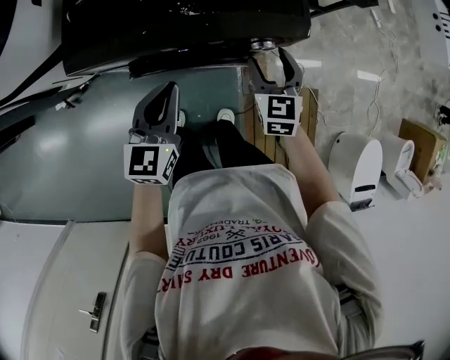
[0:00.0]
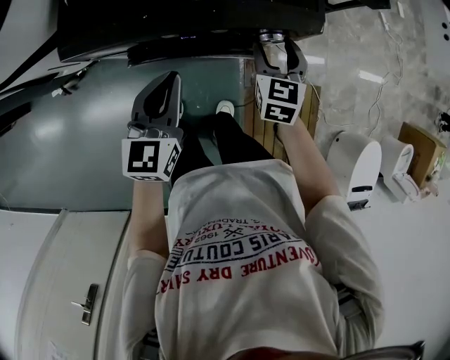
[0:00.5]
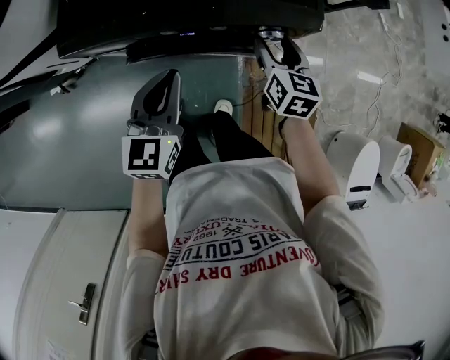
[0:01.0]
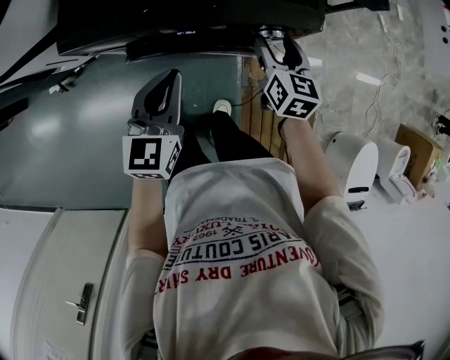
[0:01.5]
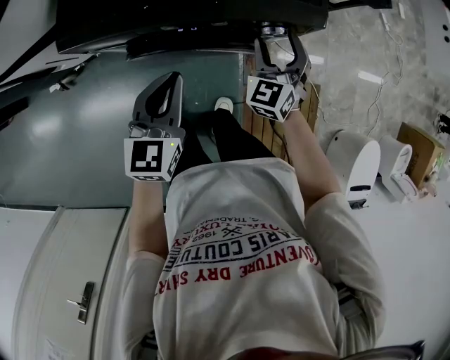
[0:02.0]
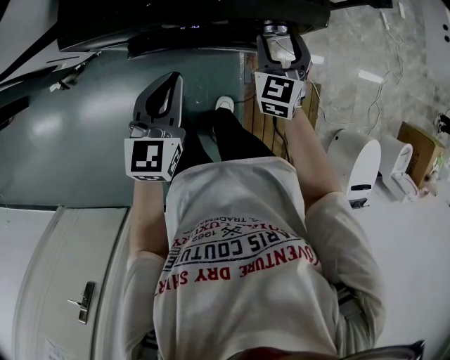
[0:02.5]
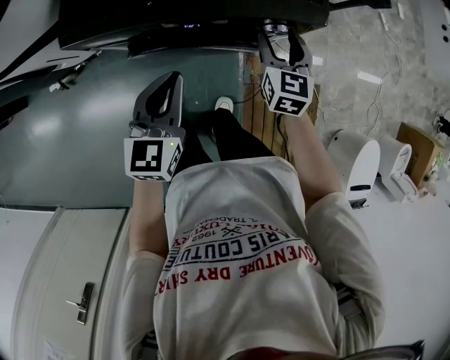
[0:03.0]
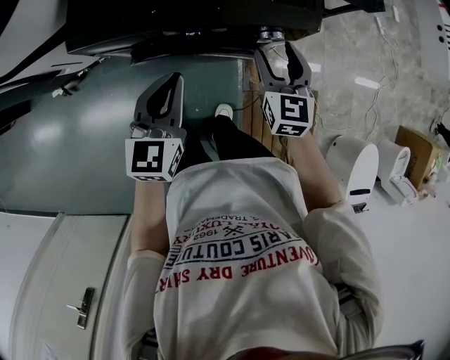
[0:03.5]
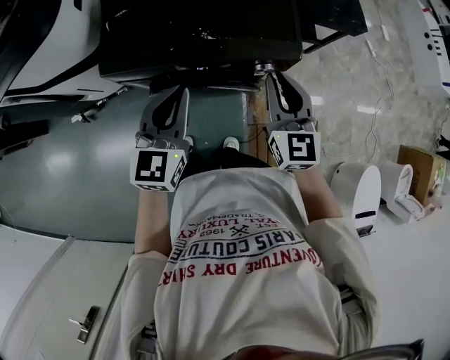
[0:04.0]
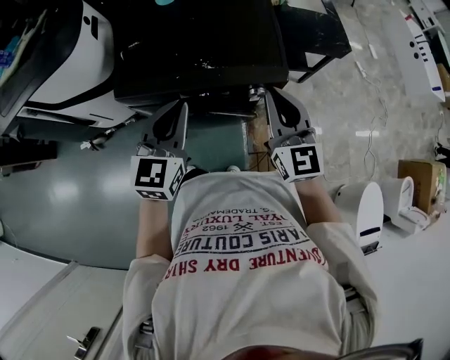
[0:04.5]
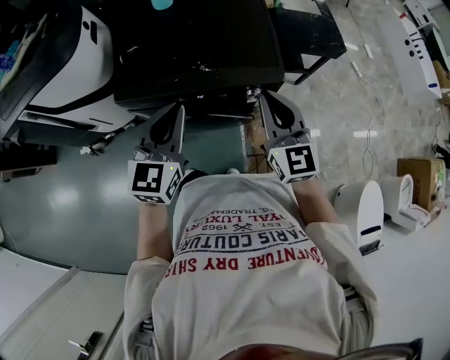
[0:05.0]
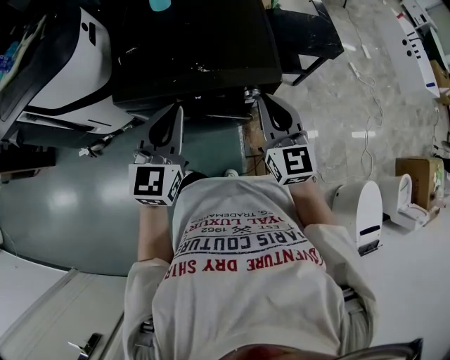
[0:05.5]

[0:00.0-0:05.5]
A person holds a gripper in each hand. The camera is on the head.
0:00.0 to 0:02.0: The right gripper rotates approximately 20 degrees.
0:02.0 to 0:03.5: The right gripper changes place by some 5 cm, and swivels approximately 30 degrees.
0:03.5 to 0:05.5: Both grippers move upward, some 20 cm. The right gripper closes up.

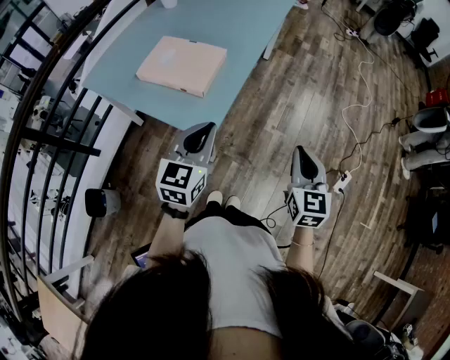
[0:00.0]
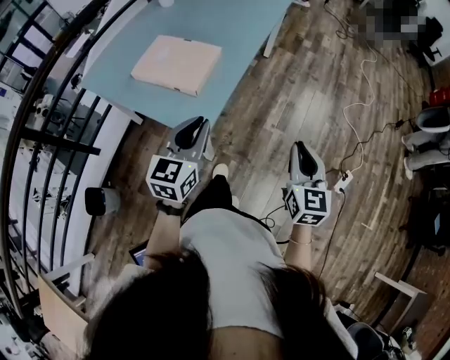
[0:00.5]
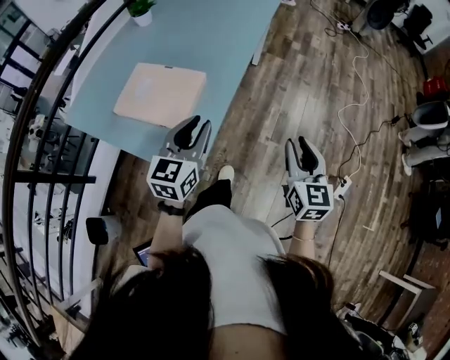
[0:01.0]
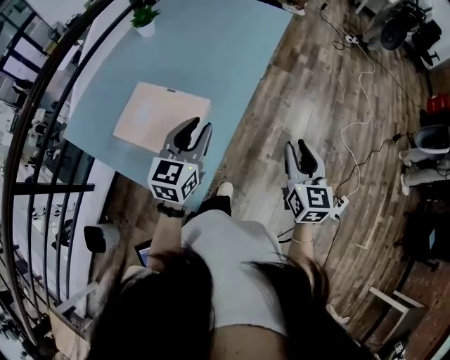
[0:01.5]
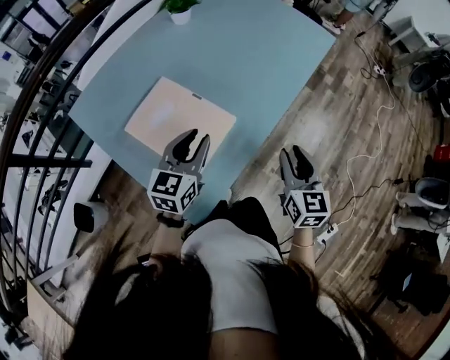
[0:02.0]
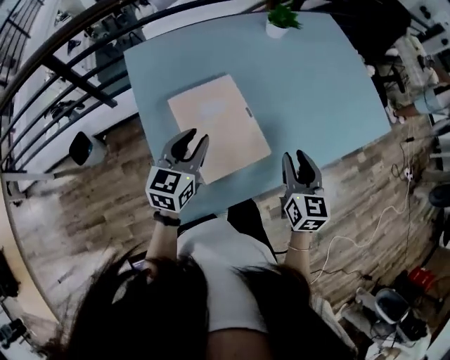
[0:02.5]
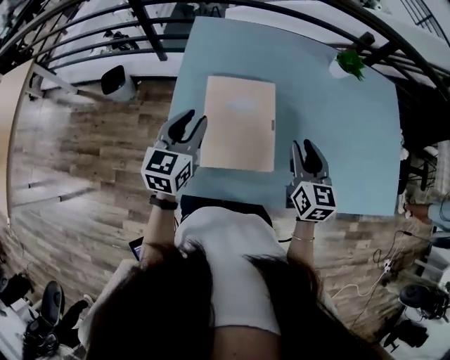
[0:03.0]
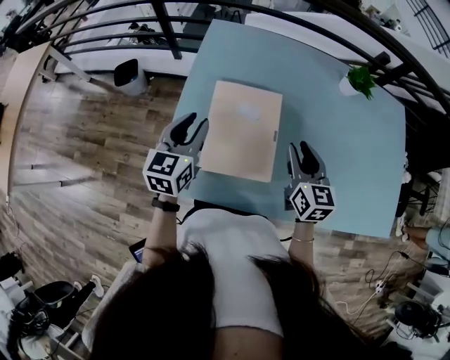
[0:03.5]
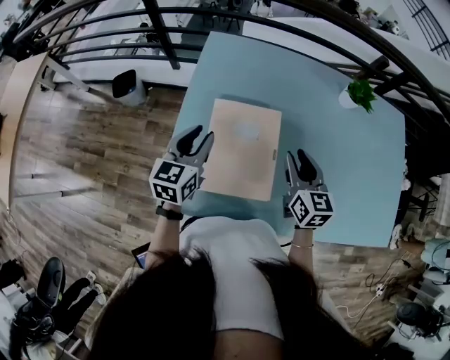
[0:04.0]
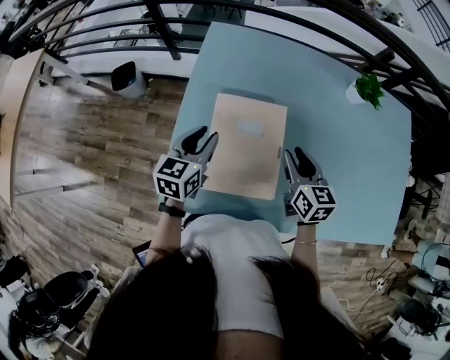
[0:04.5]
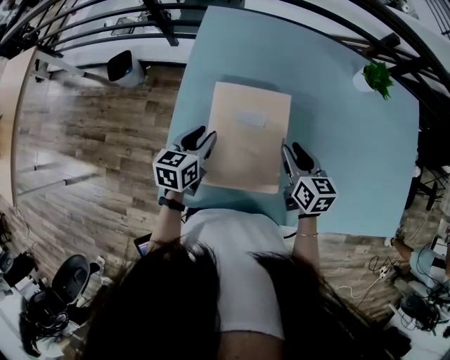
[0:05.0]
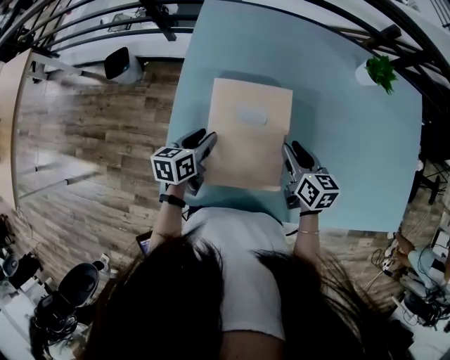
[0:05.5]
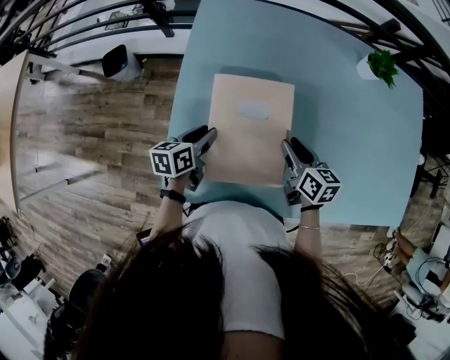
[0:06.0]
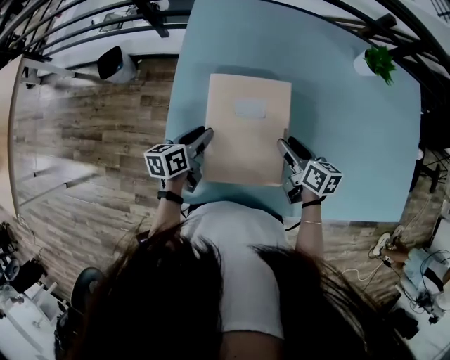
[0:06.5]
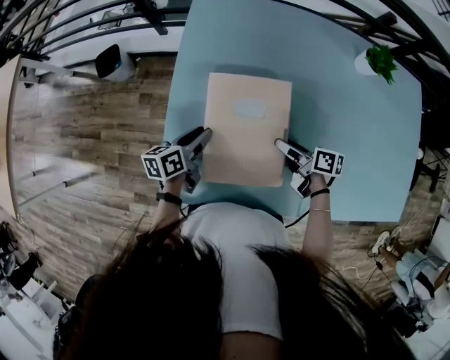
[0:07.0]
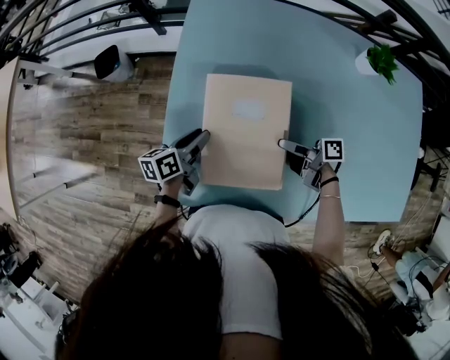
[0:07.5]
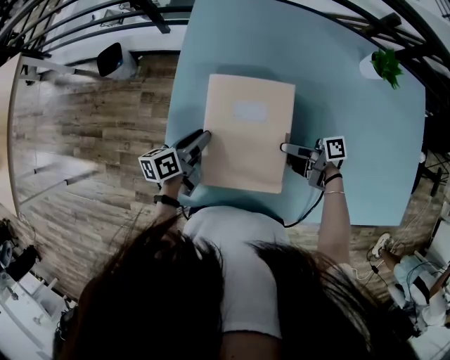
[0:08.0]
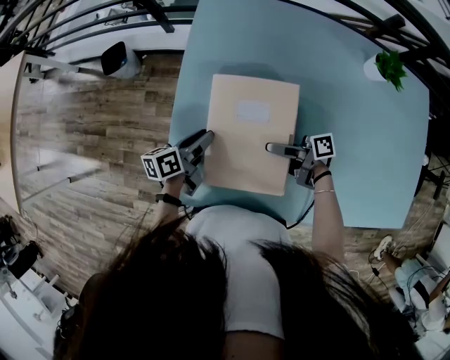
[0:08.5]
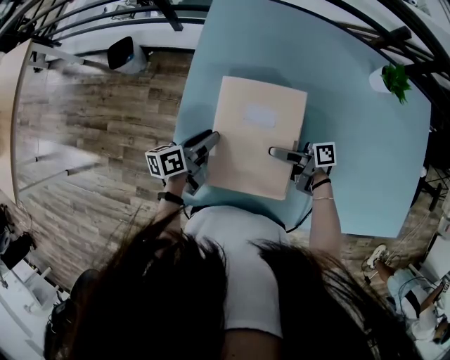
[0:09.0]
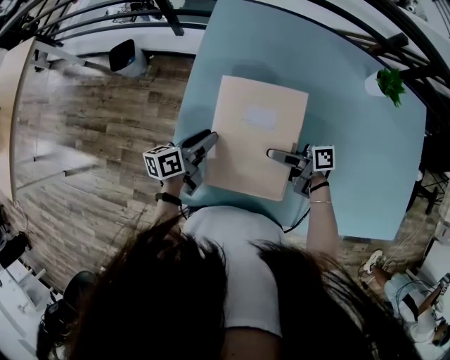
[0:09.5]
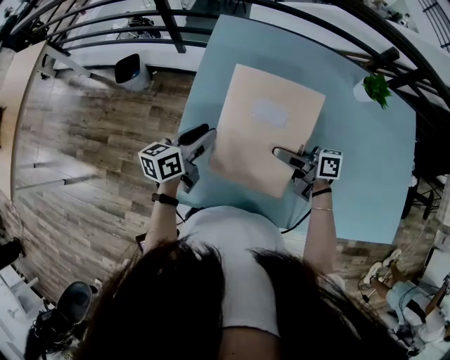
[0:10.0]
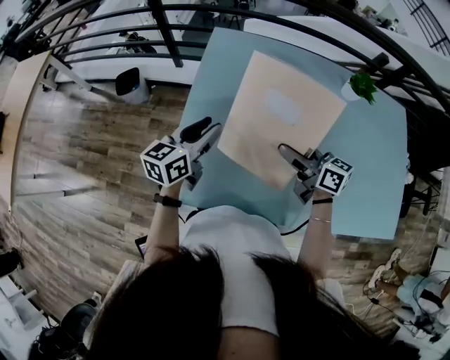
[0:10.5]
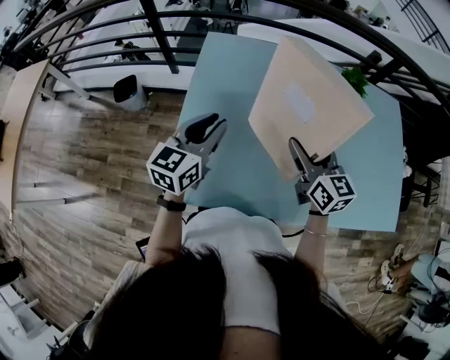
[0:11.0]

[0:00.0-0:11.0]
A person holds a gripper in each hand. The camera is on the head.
0:00.0 to 0:02.0: Both grippers travel together forward, some 35 cm. The right gripper opens its fingers.
0:02.0 to 0:03.5: The left gripper ends up roughly 15 cm from where it was, and swivels roughly 70 degrees, while the right gripper changes place by about 30 cm, and turns by roughly 60 degrees.
0:03.5 to 0:05.5: The two grippers go roughly 15 cm downward. The left gripper rotates about 40 degrees. The right gripper turns by some 20 degrees.
0:05.5 to 0:07.5: The right gripper goes about 5 cm downward, swivels some 60 degrees, and opens up.
0:07.5 to 0:09.0: The right gripper shifts approximately 5 cm to the left.
0:09.0 to 0:11.0: The right gripper heads upward and to the right, covering about 25 cm, and turns by roughly 80 degrees, while the left gripper goes some 25 cm upward, and twists approximately 50 degrees clockwise, seen from behind.

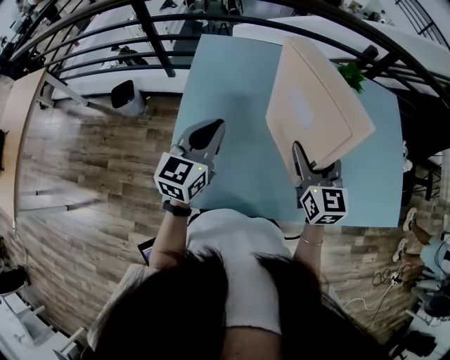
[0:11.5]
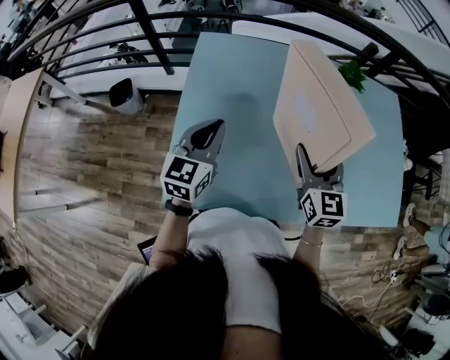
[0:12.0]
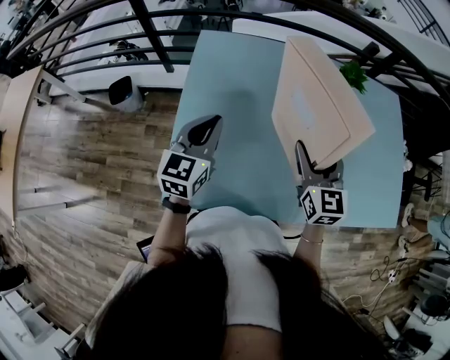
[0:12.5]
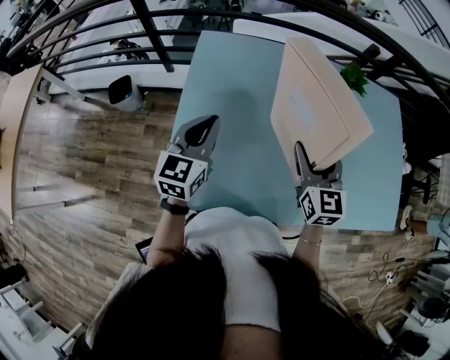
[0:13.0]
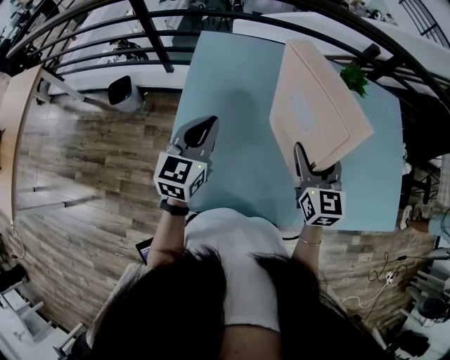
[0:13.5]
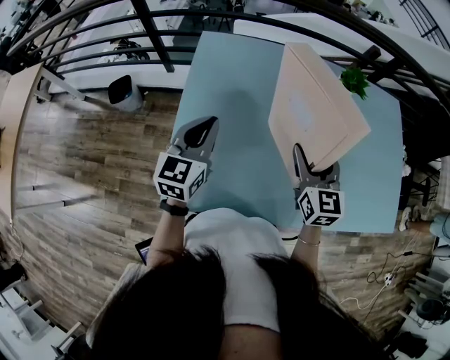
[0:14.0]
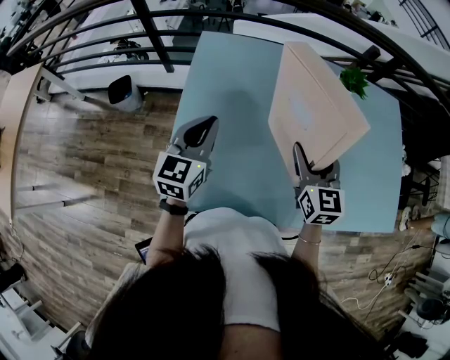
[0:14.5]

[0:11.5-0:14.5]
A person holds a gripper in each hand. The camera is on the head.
0:11.5 to 0:13.0: There are only small adjustments of the grippers.
0:13.0 to 0:14.5: Both grippers stay about where they are.

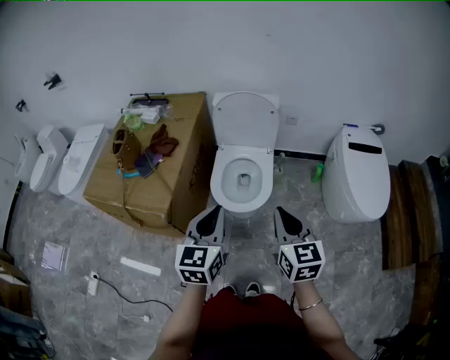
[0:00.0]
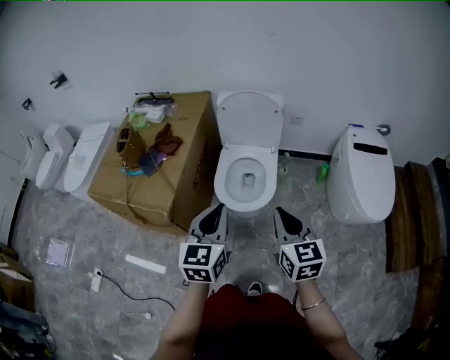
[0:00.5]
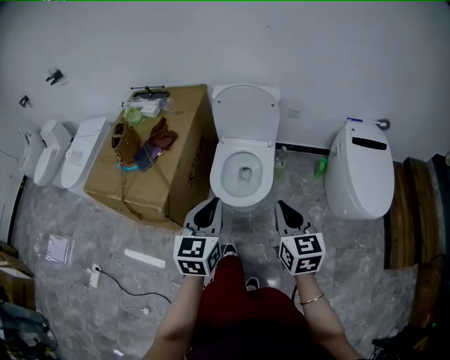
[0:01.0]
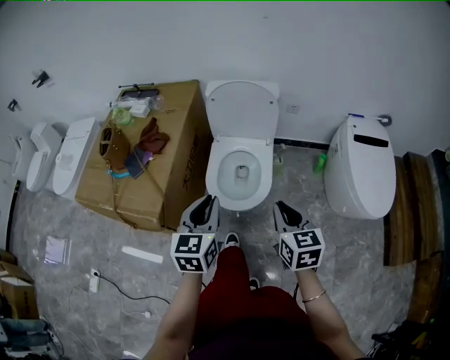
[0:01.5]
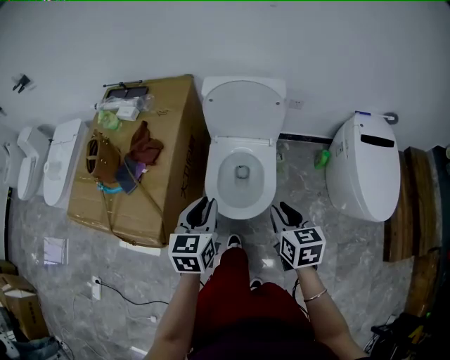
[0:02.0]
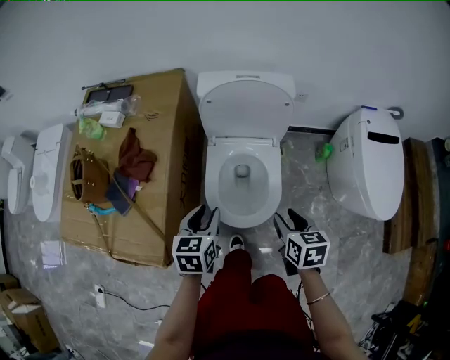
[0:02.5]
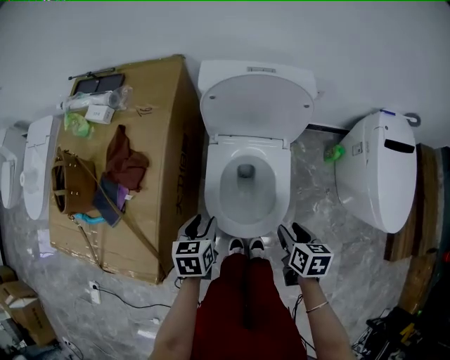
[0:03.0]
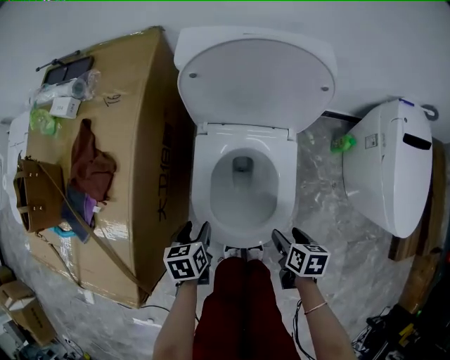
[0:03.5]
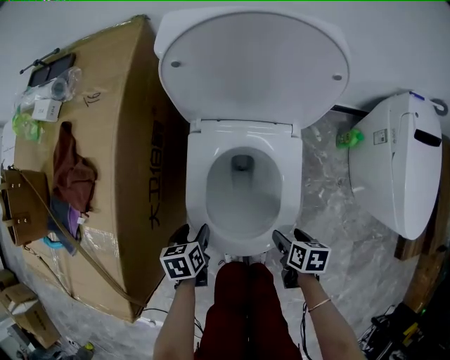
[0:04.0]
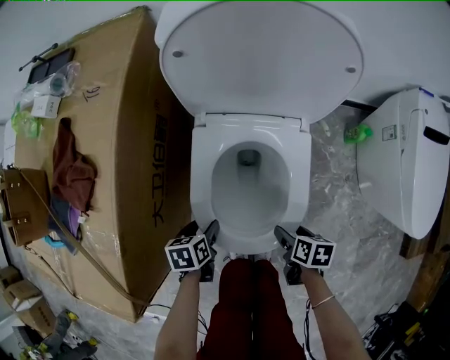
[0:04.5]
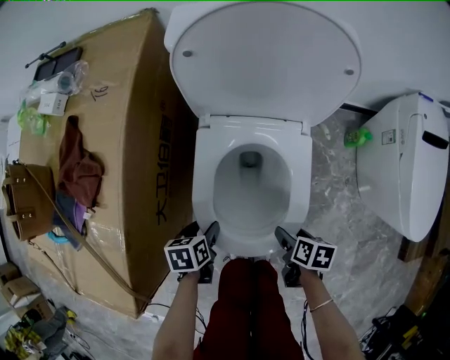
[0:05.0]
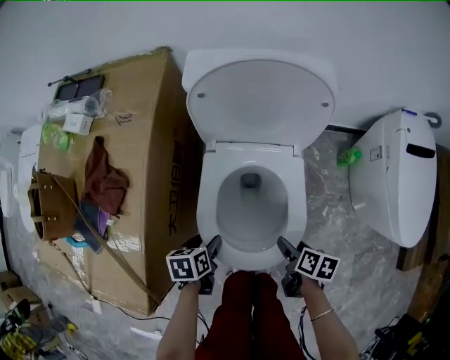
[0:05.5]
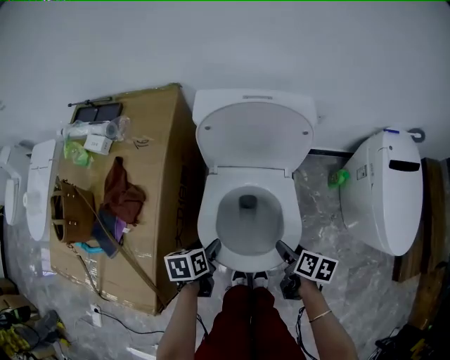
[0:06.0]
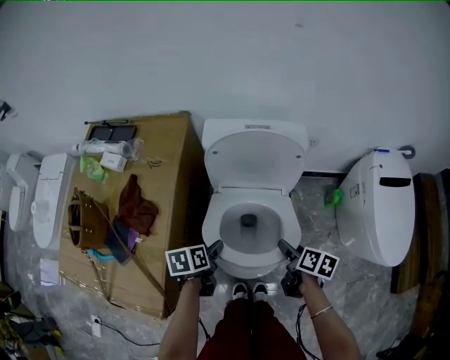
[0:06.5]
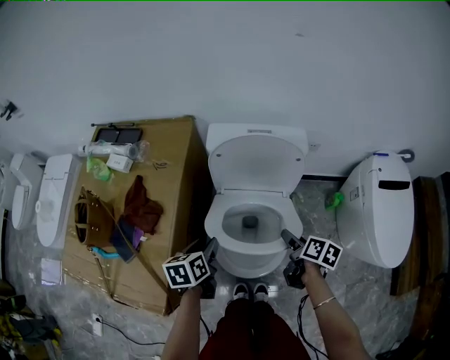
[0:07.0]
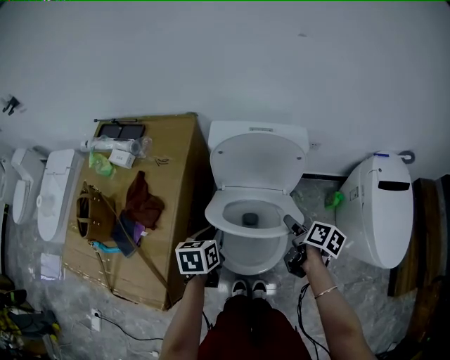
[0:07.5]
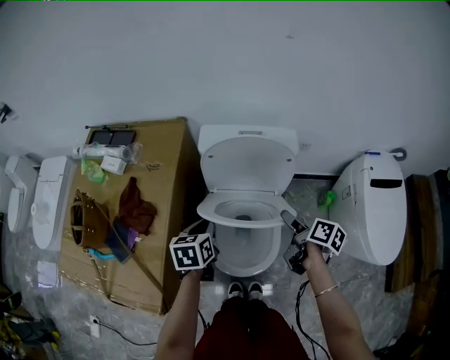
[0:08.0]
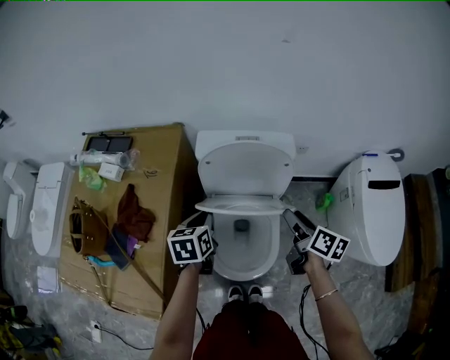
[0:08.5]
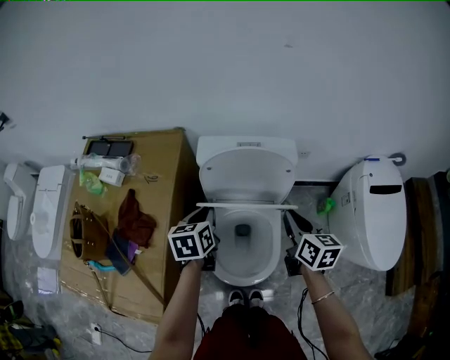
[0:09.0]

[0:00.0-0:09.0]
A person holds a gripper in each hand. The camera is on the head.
0:00.0 to 0:02.0: Both grippers travel together forward and downward, approximately 20 cm. The right gripper changes its angle by approximately 20 degrees.
0:02.0 to 0:04.5: The grippers both shift downward by some 40 cm. The right gripper rotates some 40 degrees, and opens its fingers. The left gripper angles its fingers downward, by approximately 40 degrees, and opens its fingers.
0:04.5 to 0:07.0: Both grippers move upward, some 30 cm. The right gripper rotates about 30 degrees; the left gripper rotates about 20 degrees.
0:07.0 to 0:09.0: The left gripper goes approximately 15 cm forward and upward, and closes up; the right gripper moves upward and forward, about 15 cm, turns by approximately 30 degrees, and closes.
